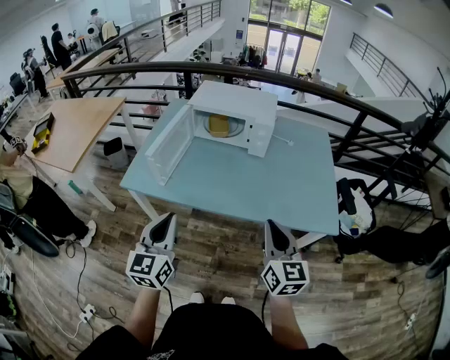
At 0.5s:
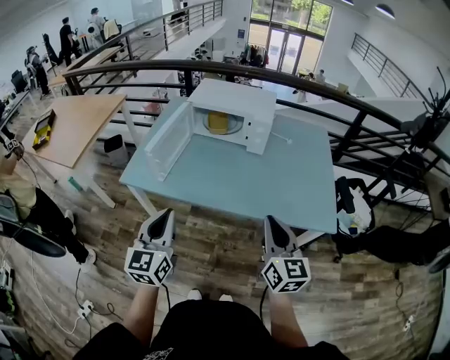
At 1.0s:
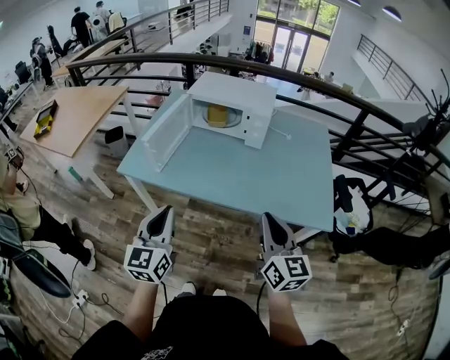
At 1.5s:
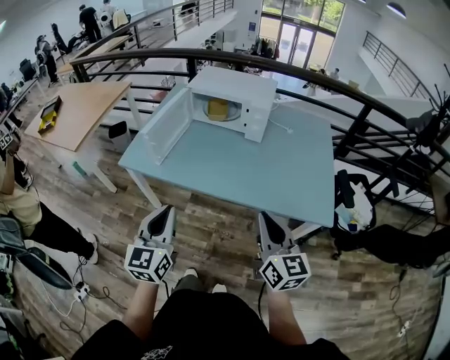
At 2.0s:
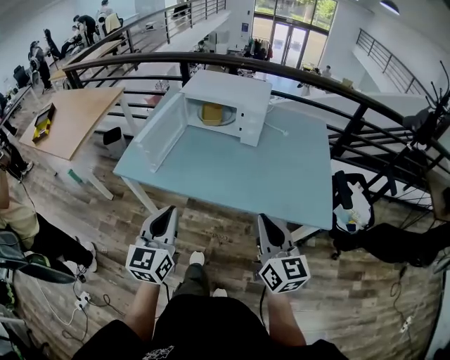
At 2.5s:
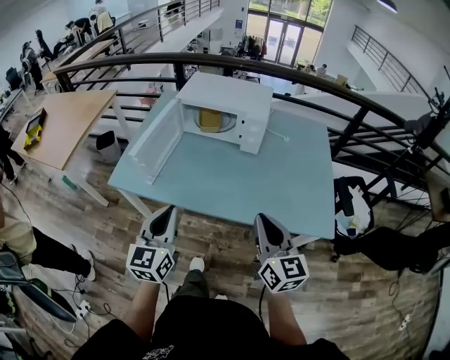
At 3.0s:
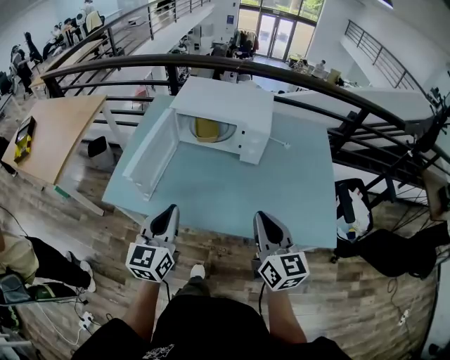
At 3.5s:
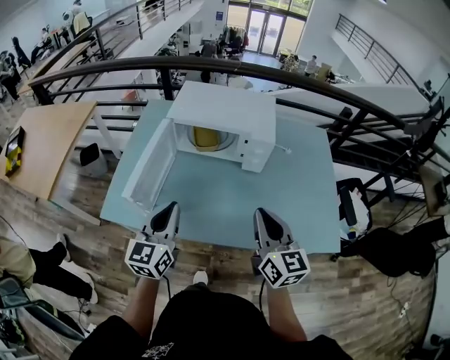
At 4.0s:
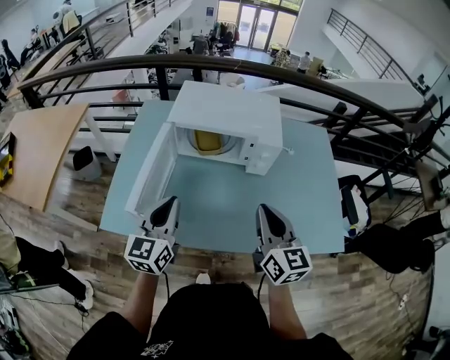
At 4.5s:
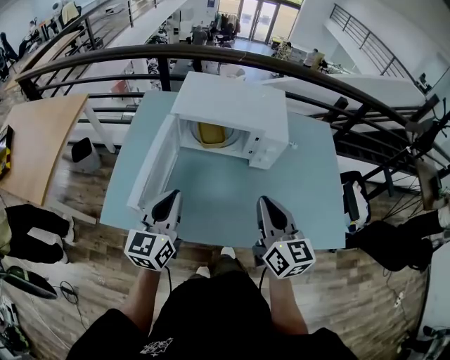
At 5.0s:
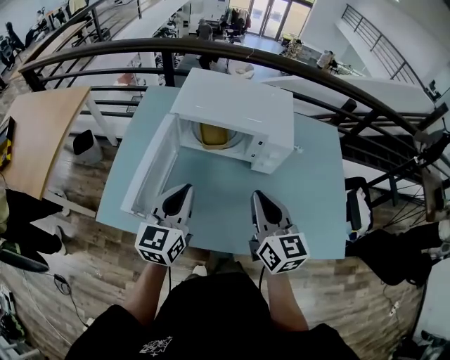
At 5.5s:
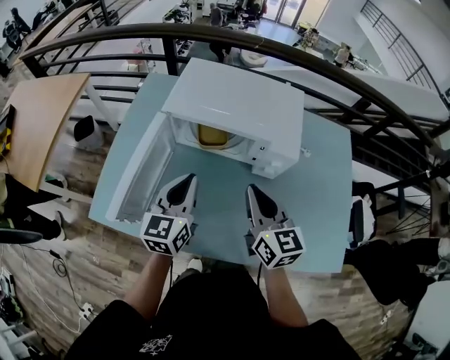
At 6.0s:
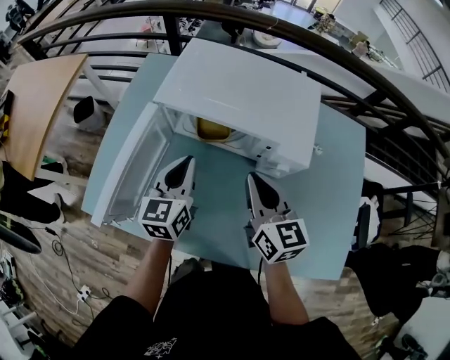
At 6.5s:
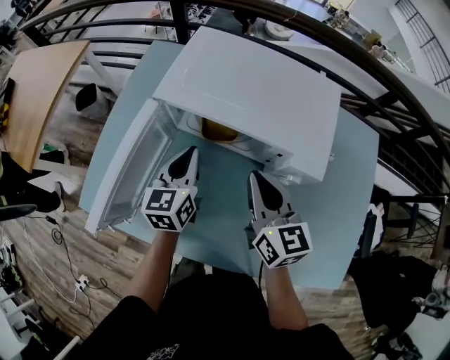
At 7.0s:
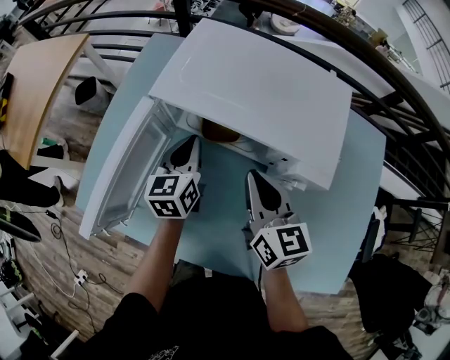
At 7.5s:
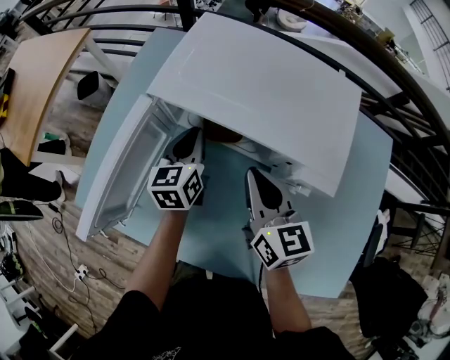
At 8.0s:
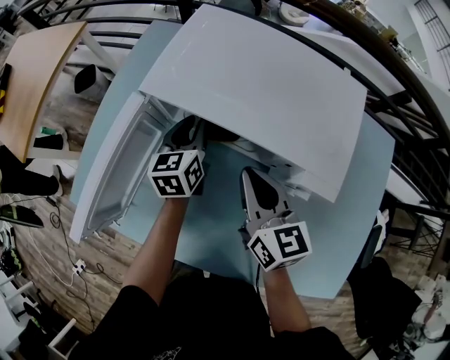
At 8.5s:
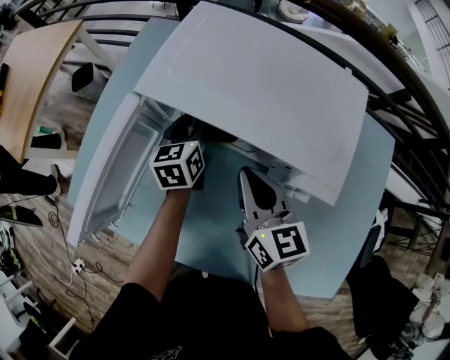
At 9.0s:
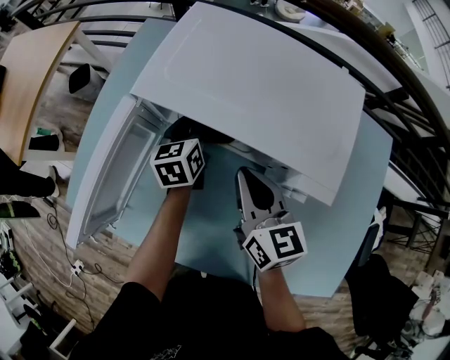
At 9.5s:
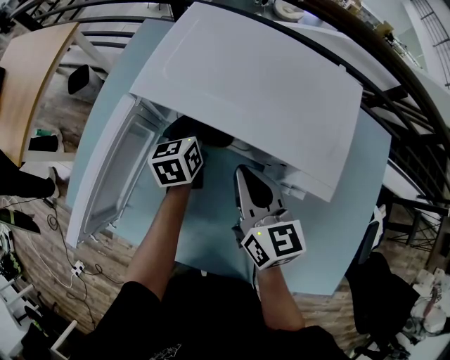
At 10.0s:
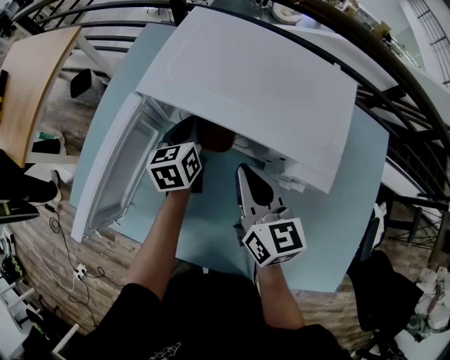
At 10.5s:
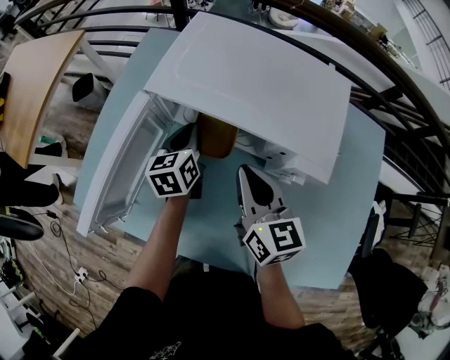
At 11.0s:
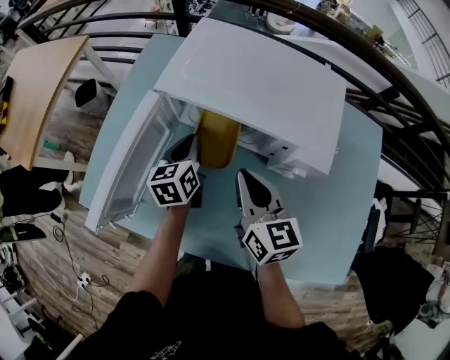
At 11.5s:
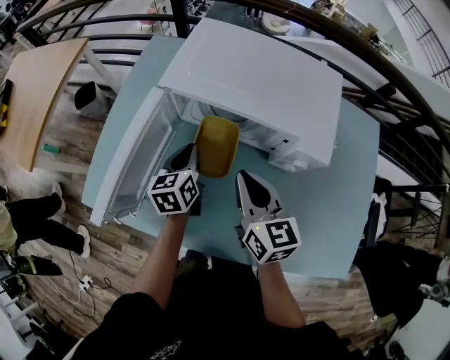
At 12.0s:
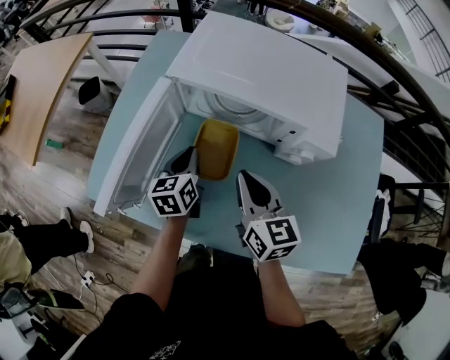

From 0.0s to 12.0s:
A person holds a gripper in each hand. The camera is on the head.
From 0.0s to 2.0s: The left gripper goes roughly 5 cm to the right.
From 2.0s to 4.0s: Both grippers travel together forward, roughly 30 cm.
From 4.0s to 6.0s: The grippers both shift forward and downward by approximately 20 cm.
From 6.0s to 8.0s: The right gripper is displaced forward and downward by approximately 10 cm; the left gripper moves forward and downward, approximately 20 cm.
From 8.0s to 10.0s: There are only small adjustments of the grippers.
From 10.0s to 12.0s: The two grippers go roughly 10 cm backward and to the left.

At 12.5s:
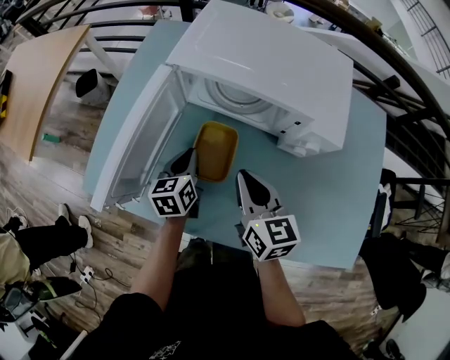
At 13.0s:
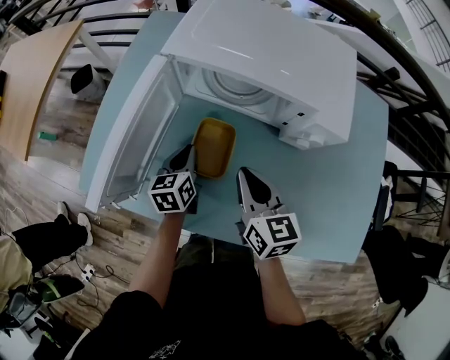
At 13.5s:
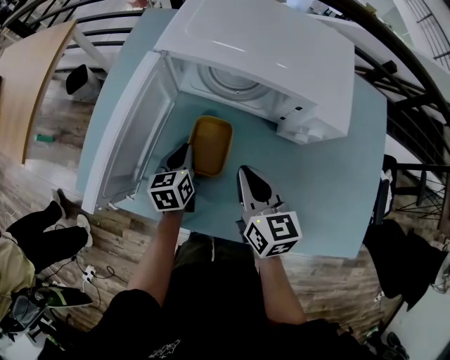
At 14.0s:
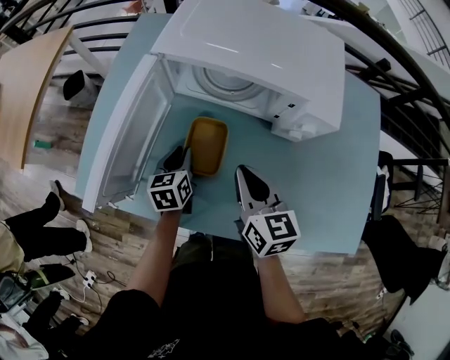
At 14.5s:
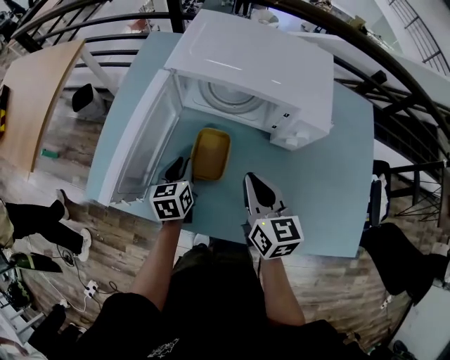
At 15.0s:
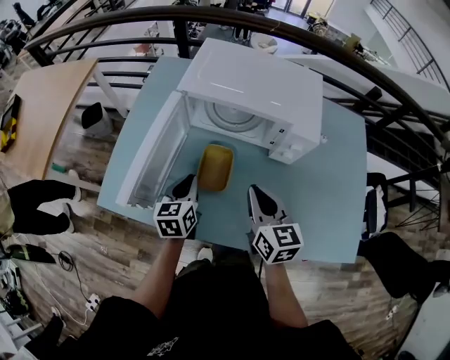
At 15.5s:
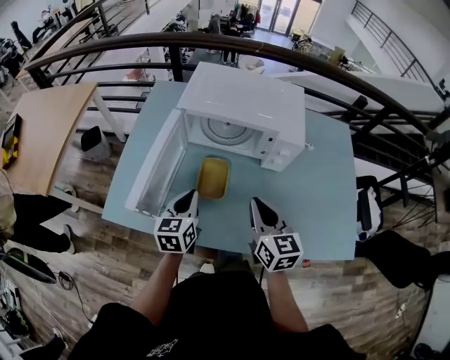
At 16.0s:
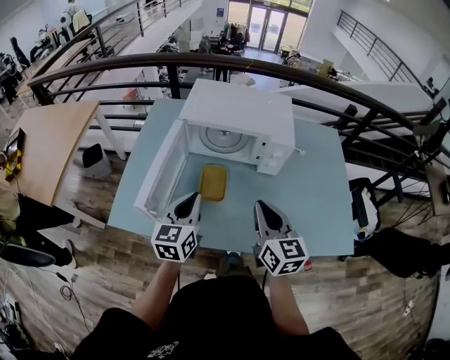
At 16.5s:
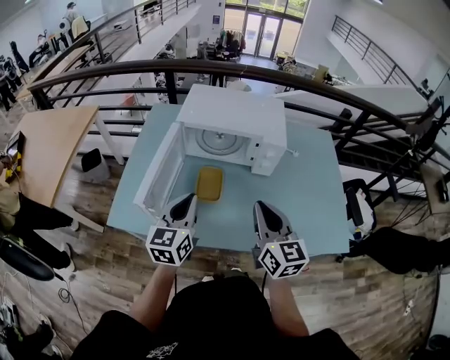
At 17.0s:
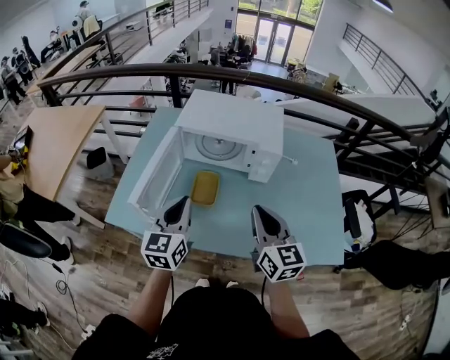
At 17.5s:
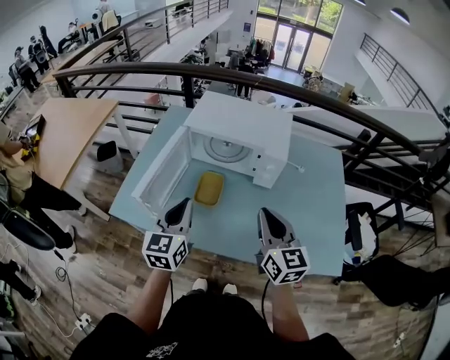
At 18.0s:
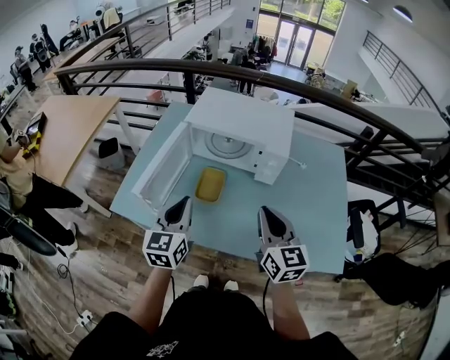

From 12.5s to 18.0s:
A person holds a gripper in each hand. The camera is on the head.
From 12.5s to 14.5s: The grippers make only small movements.
From 14.5s to 16.0s: The two grippers go roughly 20 cm upward and backward. The left gripper rotates approximately 30 degrees.
From 16.0s to 18.0s: The left gripper heads upward and backward, covering approximately 10 cm. The right gripper travels to the right by some 5 cm.

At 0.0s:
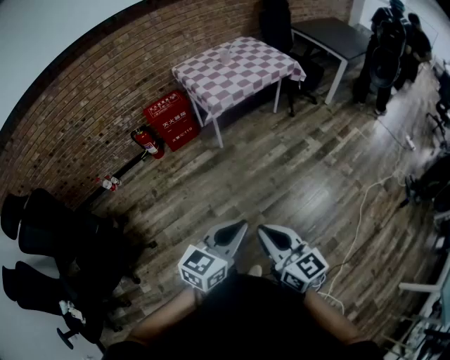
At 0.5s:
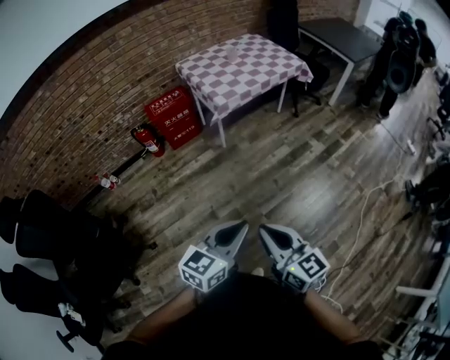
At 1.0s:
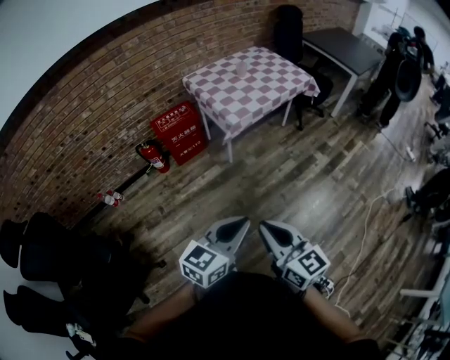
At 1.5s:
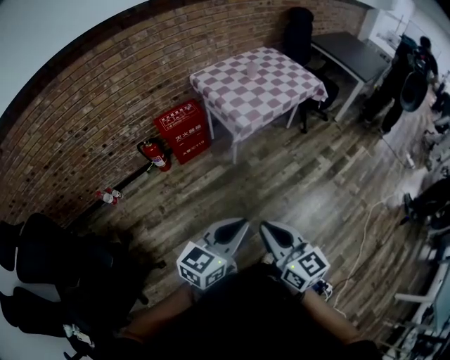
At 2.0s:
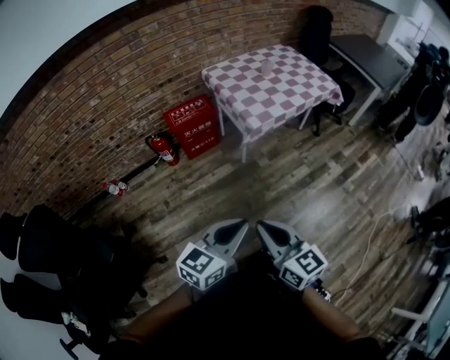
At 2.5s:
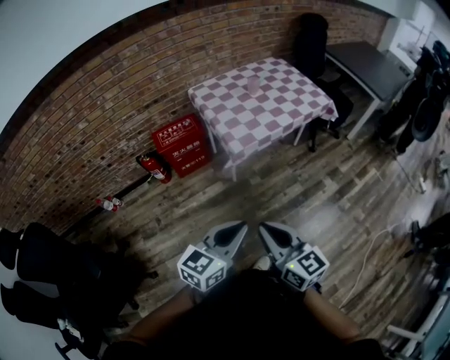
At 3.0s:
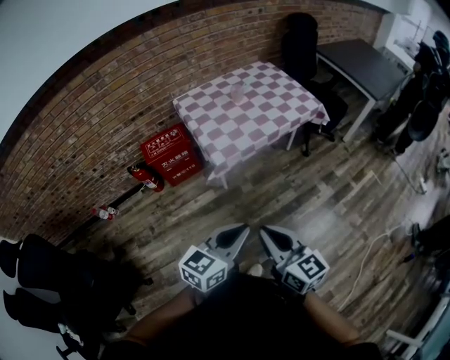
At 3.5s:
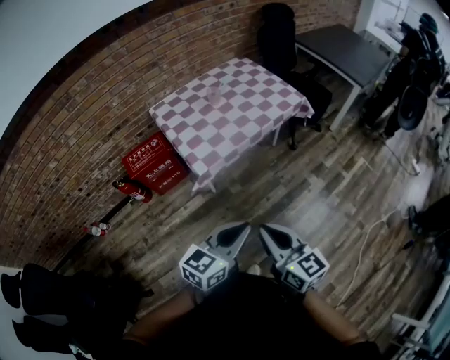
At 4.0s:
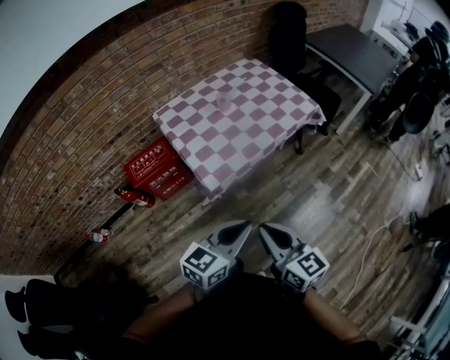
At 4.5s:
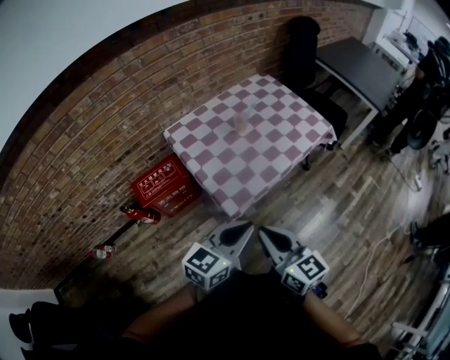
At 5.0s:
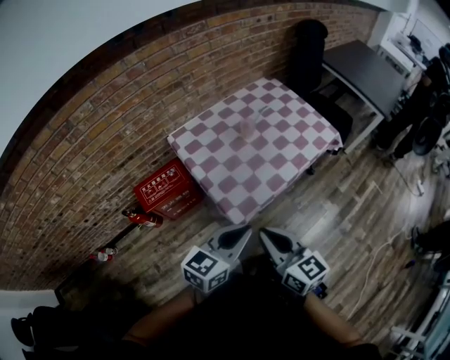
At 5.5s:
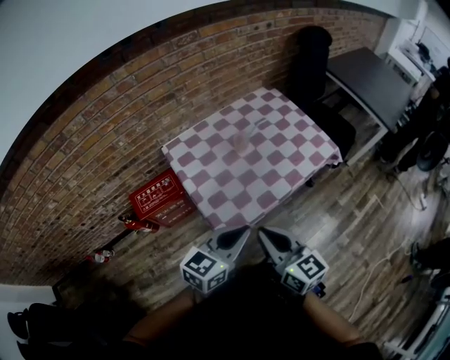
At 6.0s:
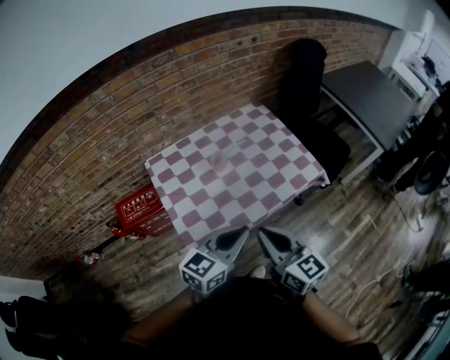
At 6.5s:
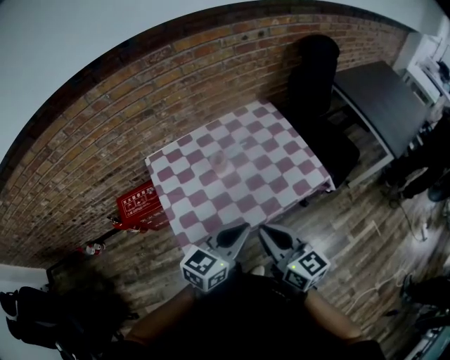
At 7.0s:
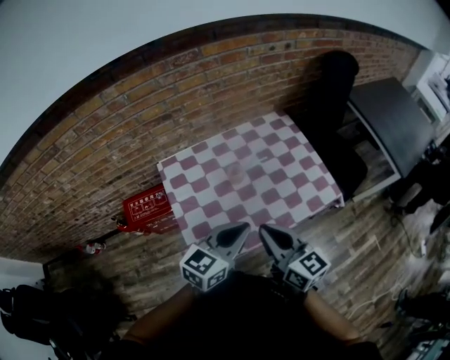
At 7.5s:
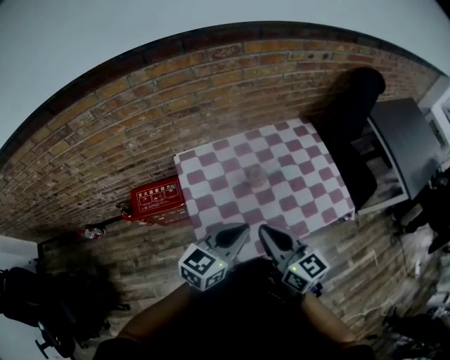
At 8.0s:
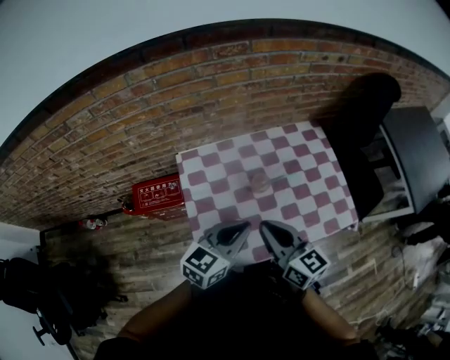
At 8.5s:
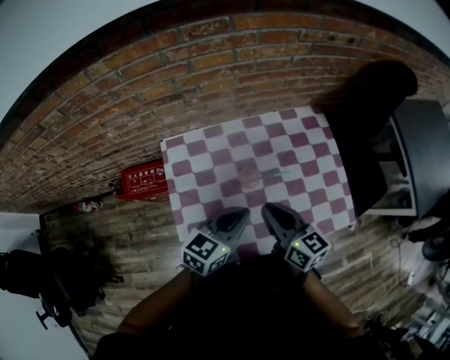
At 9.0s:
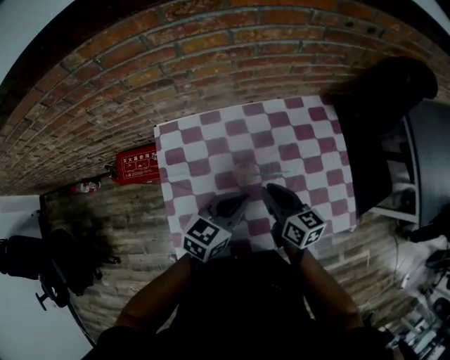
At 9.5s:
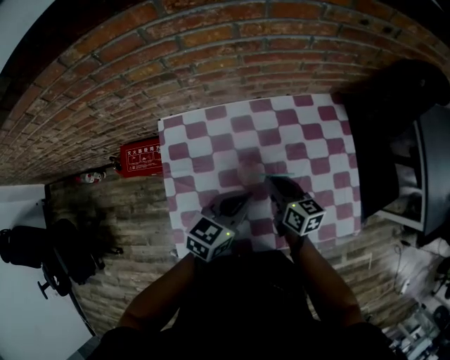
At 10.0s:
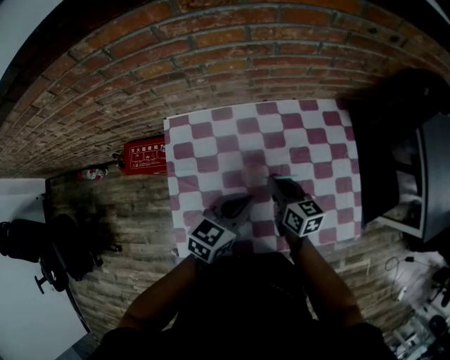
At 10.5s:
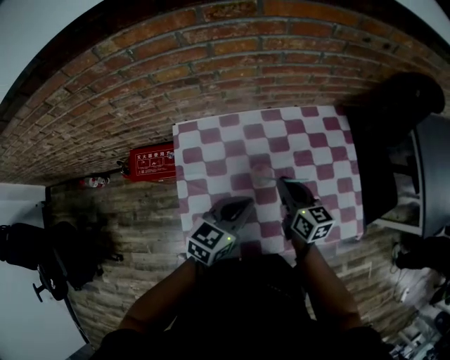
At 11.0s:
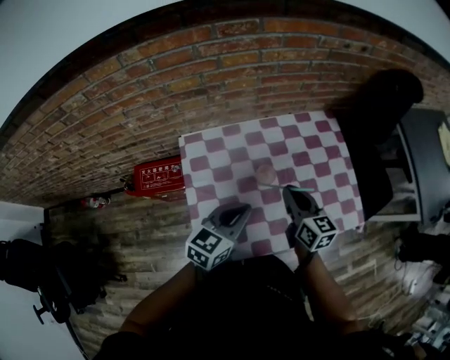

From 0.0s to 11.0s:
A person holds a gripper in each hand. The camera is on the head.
From 0.0s to 2.0s: The grippers both shift forward and to the left by roughly 30 cm.
From 2.0s to 3.5s: Both grippers travel together to the right and forward, roughly 35 cm.
From 3.5s to 5.5s: The grippers both shift forward and to the left by about 35 cm.
From 5.5s to 7.5s: The two grippers go approximately 20 cm forward.
From 7.5s to 9.0s: Both grippers travel together forward, downward and to the right, about 25 cm. The right gripper changes its angle by roughly 20 degrees.
From 9.0s to 11.0s: The right gripper travels upward by roughly 5 cm. The left gripper heads to the left, backward and upward, covering approximately 10 cm.
